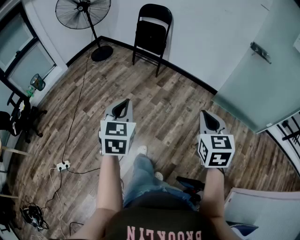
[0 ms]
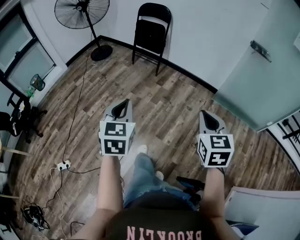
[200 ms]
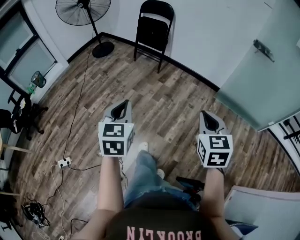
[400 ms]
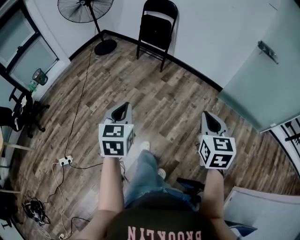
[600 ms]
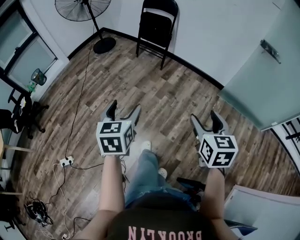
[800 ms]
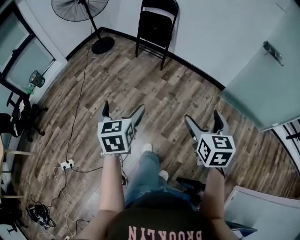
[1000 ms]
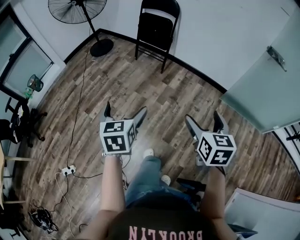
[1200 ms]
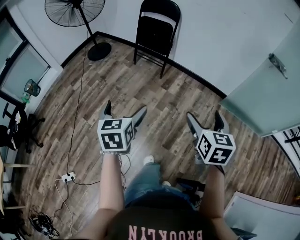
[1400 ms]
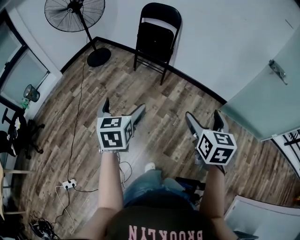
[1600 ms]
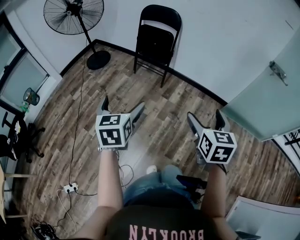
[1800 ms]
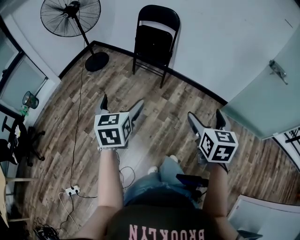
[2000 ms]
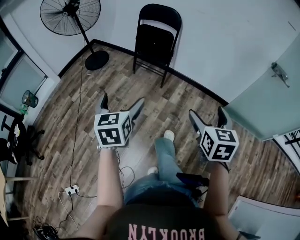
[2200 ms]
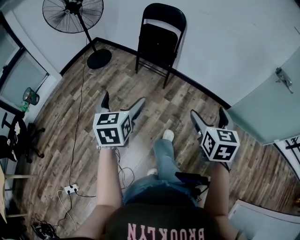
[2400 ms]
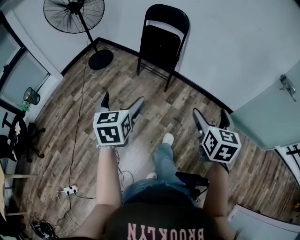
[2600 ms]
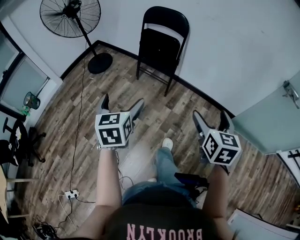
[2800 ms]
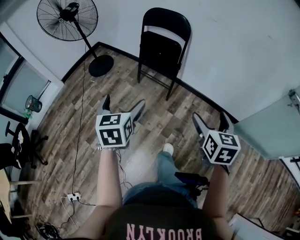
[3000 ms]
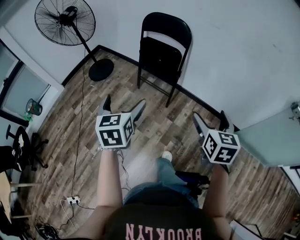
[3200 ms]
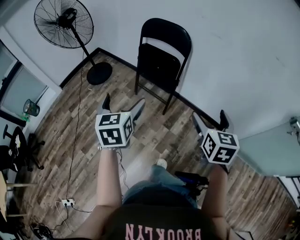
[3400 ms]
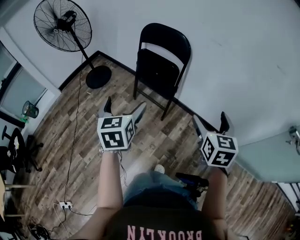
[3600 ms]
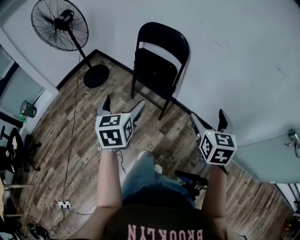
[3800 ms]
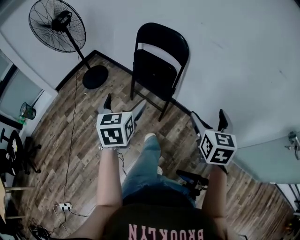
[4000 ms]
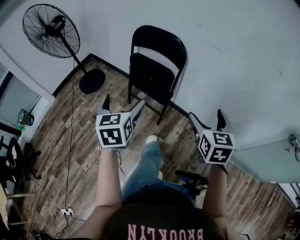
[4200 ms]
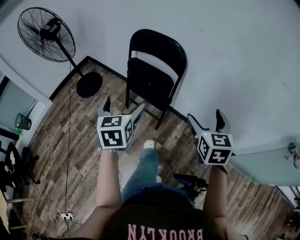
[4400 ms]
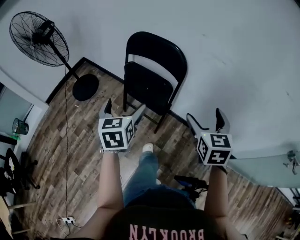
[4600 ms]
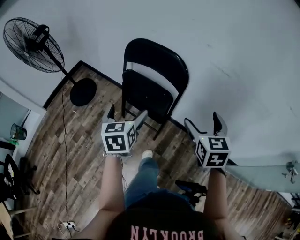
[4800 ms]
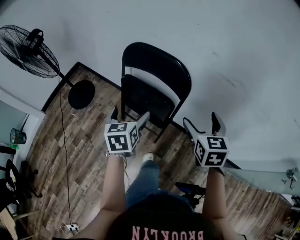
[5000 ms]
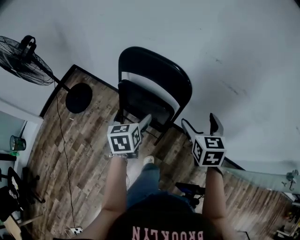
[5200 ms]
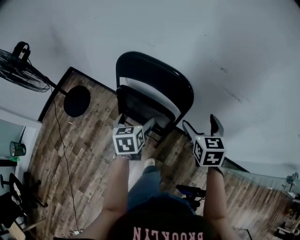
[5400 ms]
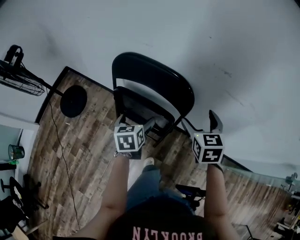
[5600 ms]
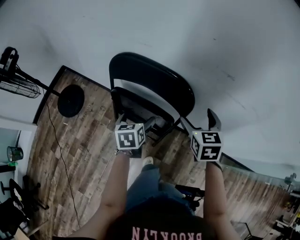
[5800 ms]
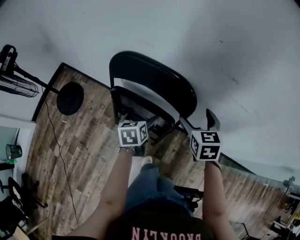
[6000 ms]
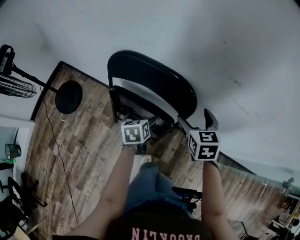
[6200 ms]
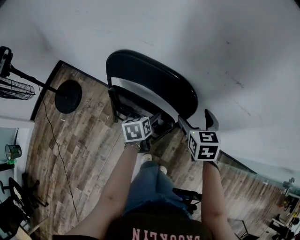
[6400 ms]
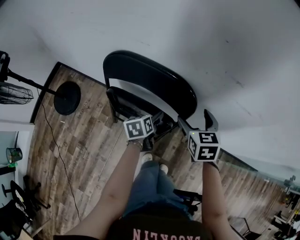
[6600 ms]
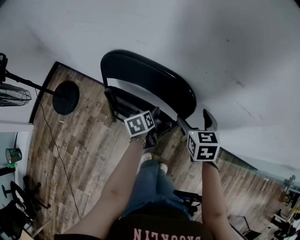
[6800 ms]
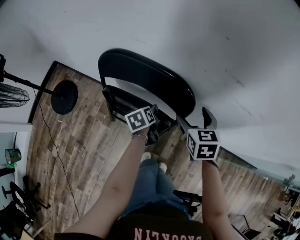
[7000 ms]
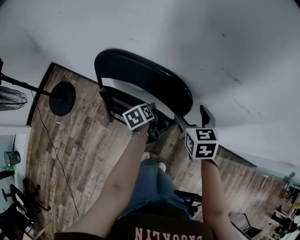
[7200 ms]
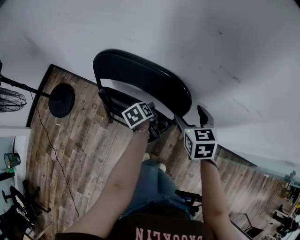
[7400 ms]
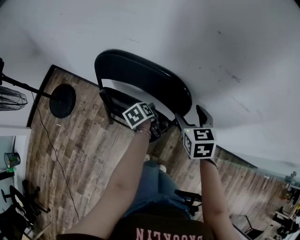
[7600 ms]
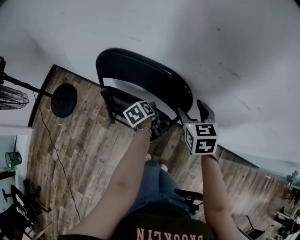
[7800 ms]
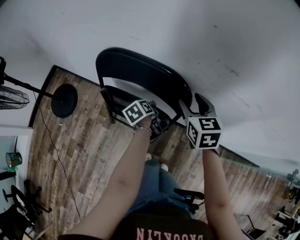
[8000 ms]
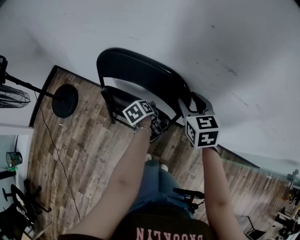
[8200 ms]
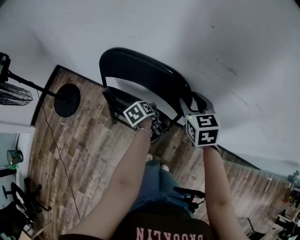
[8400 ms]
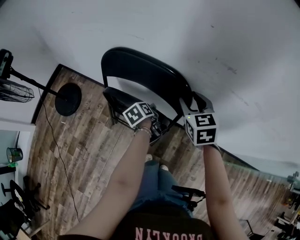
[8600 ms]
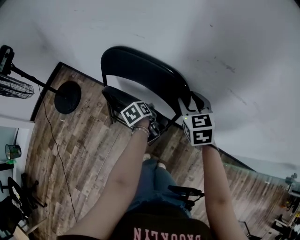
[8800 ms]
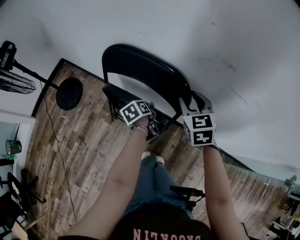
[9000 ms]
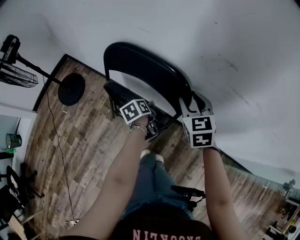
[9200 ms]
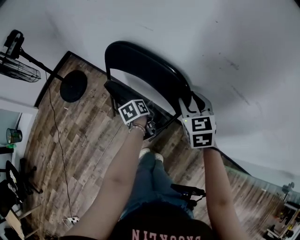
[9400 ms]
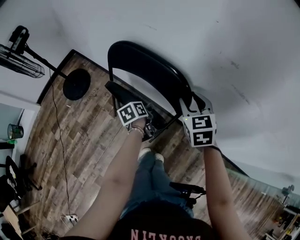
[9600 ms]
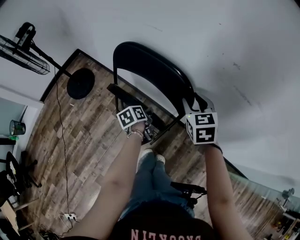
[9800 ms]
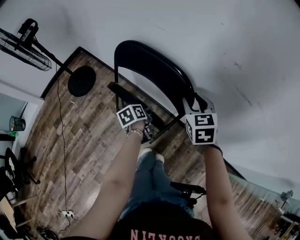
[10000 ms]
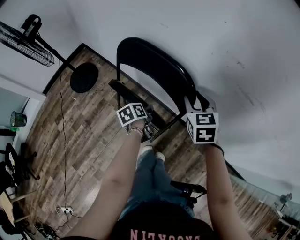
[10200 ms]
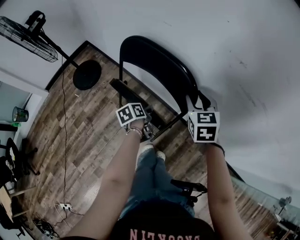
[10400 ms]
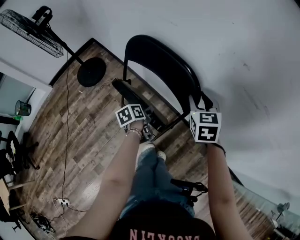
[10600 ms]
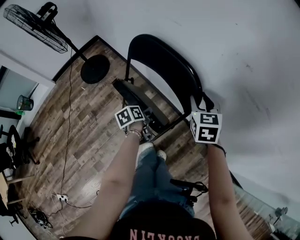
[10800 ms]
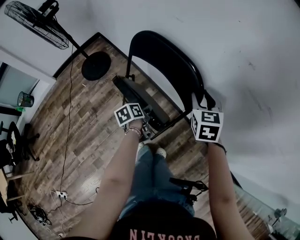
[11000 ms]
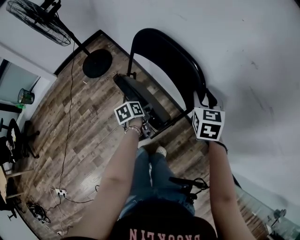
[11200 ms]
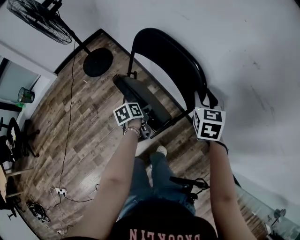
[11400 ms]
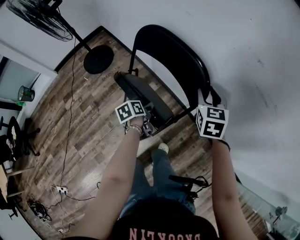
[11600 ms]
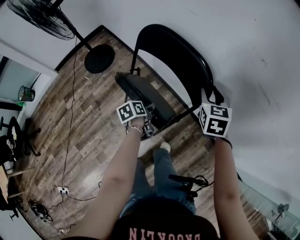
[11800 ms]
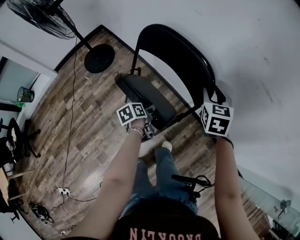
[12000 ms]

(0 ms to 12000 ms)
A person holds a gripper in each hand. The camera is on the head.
0 ms - 1600 ms: The two grippers go approximately 30 cm forward and to the left. The left gripper opens. Meanwhile the right gripper opens up.
1600 ms - 3000 ms: The two grippers go some 25 cm forward.
3000 ms - 4400 ms: The two grippers go about 30 cm forward.
4400 ms - 6000 ms: The right gripper heads forward, covering approximately 35 cm. The left gripper is displaced forward and downward by about 40 cm, and rotates approximately 30 degrees.
6000 ms - 7600 ms: The left gripper shifts roughly 10 cm downward and forward, rotates about 30 degrees, and closes up.
7600 ms - 9000 ms: The right gripper closes its fingers.
9000 ms - 10400 ms: The left gripper shifts some 10 cm backward.
10400 ms - 12000 ms: The left gripper is displaced backward and to the left by roughly 10 cm.

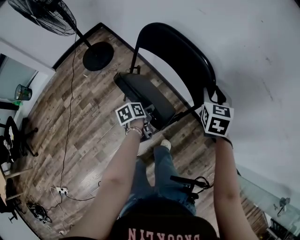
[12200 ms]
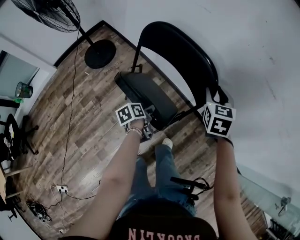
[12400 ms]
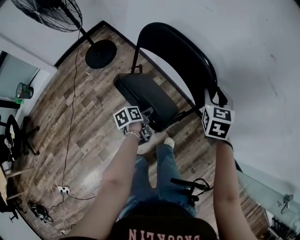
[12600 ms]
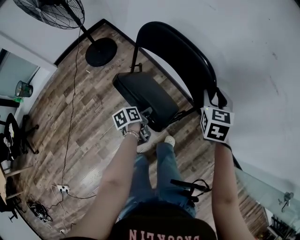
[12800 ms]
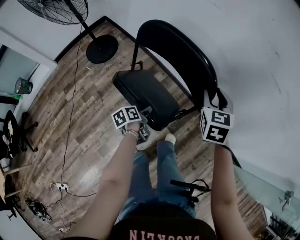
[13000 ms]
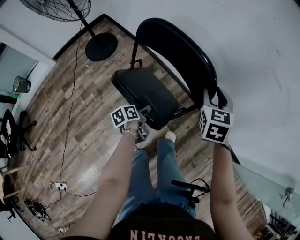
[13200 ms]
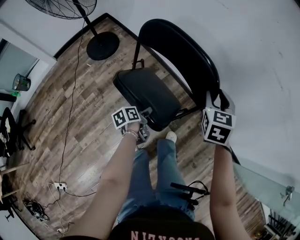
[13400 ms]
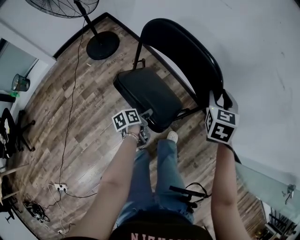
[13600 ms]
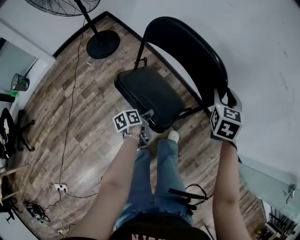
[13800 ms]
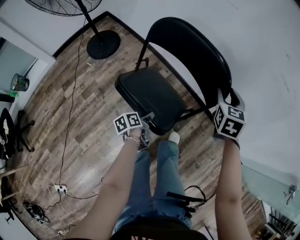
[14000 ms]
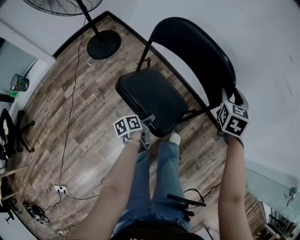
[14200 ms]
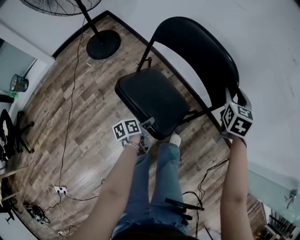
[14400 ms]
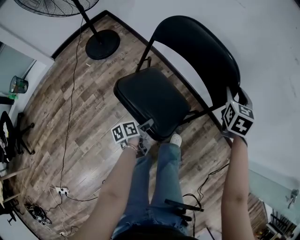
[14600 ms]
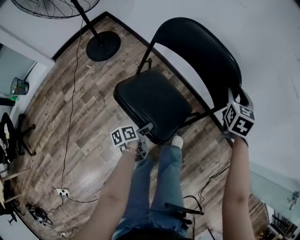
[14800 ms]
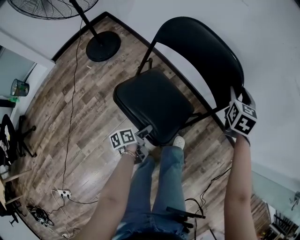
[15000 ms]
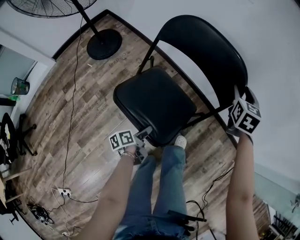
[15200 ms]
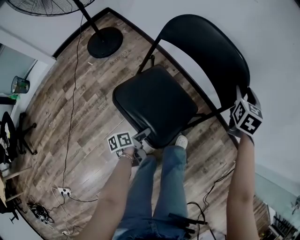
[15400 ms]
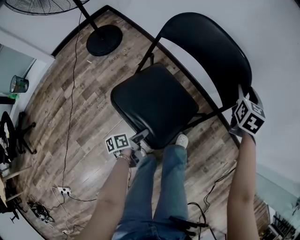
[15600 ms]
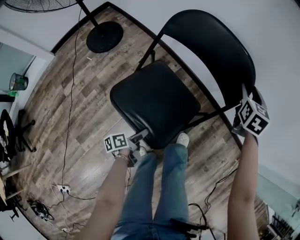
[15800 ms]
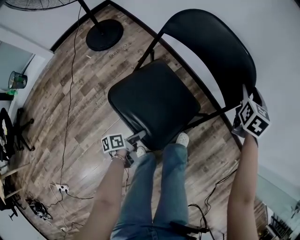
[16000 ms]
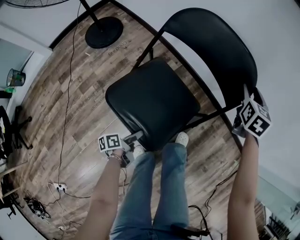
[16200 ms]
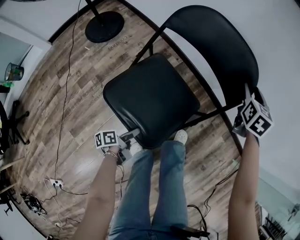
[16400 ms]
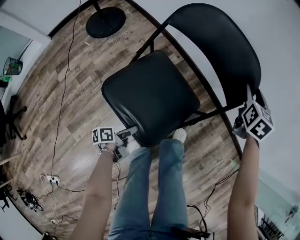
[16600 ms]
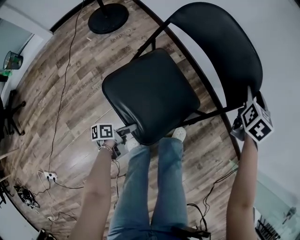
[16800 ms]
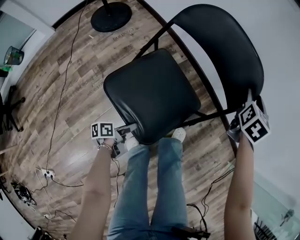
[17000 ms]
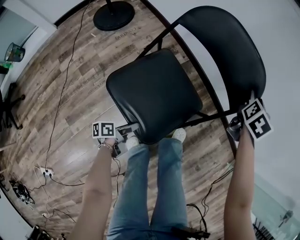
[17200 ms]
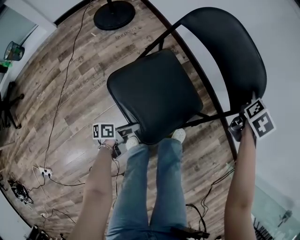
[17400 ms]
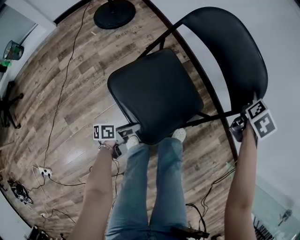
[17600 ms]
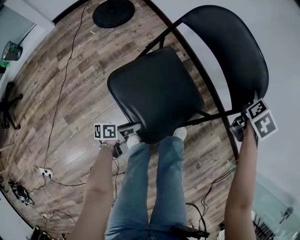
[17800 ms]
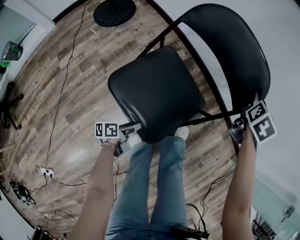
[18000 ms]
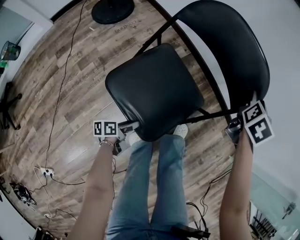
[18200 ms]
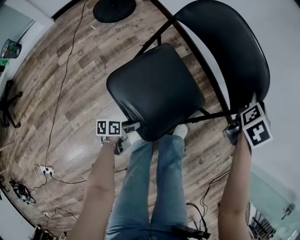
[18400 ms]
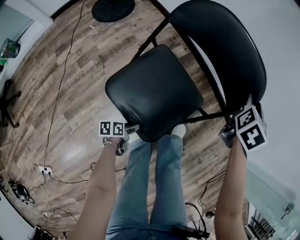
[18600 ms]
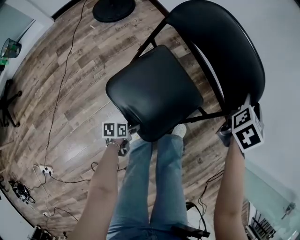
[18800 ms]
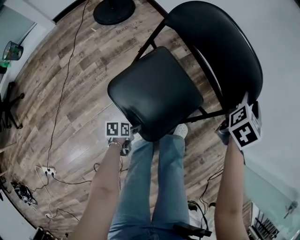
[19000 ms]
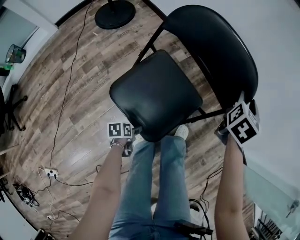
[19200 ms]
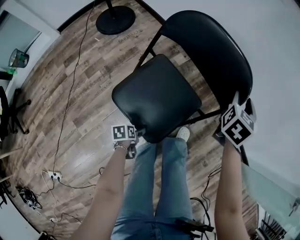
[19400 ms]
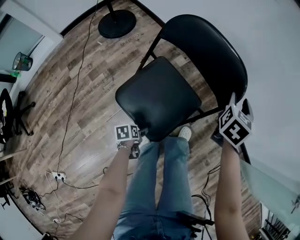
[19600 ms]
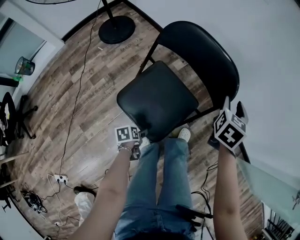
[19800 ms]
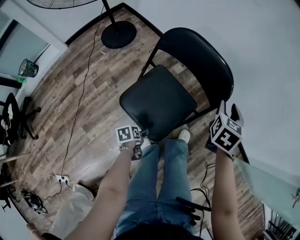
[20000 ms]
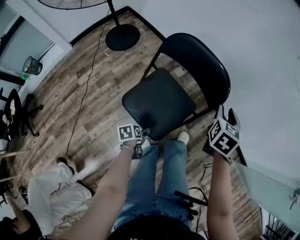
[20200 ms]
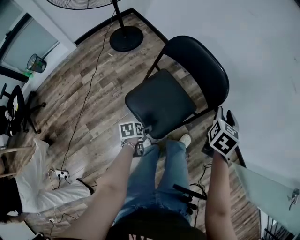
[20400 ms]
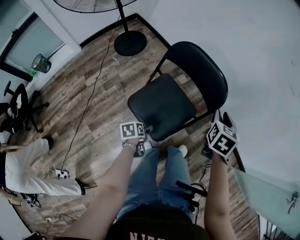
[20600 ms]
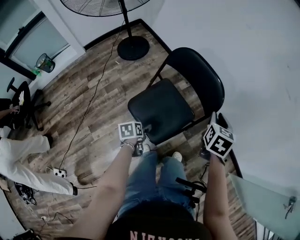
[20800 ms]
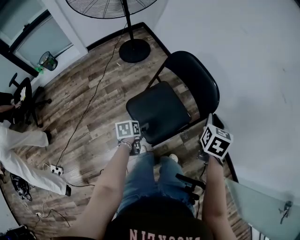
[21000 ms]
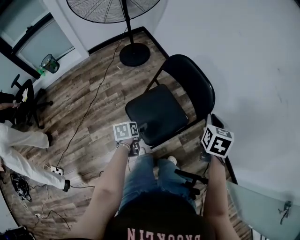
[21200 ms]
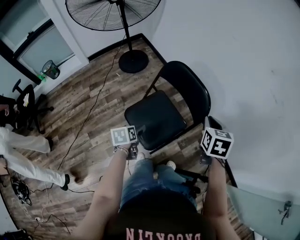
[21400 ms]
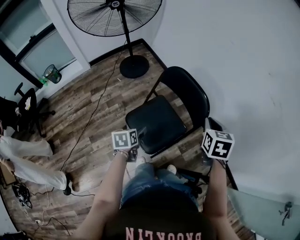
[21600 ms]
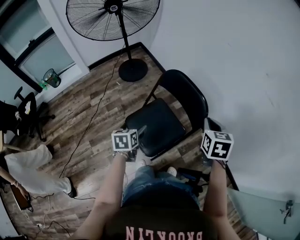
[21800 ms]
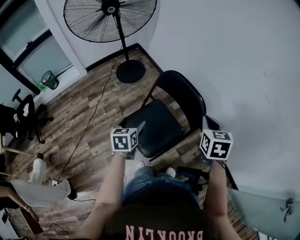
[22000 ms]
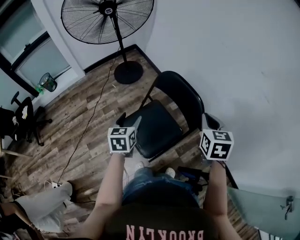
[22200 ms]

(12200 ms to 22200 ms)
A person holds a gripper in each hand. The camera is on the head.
12200 ms - 13600 ms: Both grippers travel together backward and to the left, roughly 15 cm.
13600 ms - 15000 ms: The right gripper goes about 10 cm forward and downward, while the left gripper goes some 5 cm downward.
15000 ms - 16400 ms: The right gripper travels downward by about 10 cm; the left gripper moves downward and backward, approximately 15 cm.
16400 ms - 18000 ms: The grippers both shift backward by some 5 cm.
18000 ms - 19400 ms: The right gripper moves backward, about 5 cm, while the left gripper ends up roughly 5 cm from where it was, and tips its fingers downward by some 30 degrees.
19400 ms - 20800 ms: The left gripper is displaced upward by approximately 25 cm, while the right gripper changes place by some 15 cm, and turns by roughly 20 degrees.
20800 ms - 22200 ms: The left gripper heads upward, covering approximately 25 cm, and changes its angle by roughly 40 degrees. Meanwhile the right gripper shifts about 15 cm upward, and rotates roughly 20 degrees.

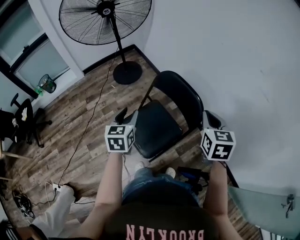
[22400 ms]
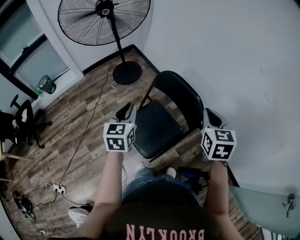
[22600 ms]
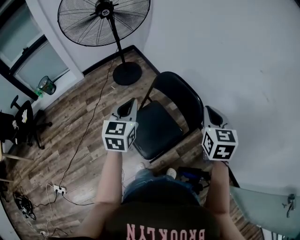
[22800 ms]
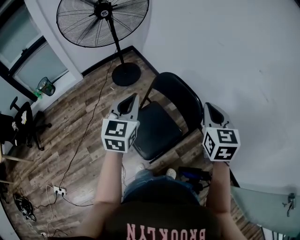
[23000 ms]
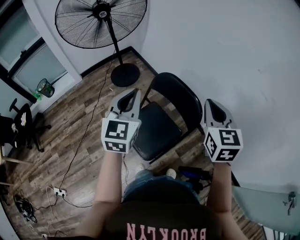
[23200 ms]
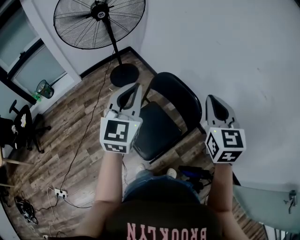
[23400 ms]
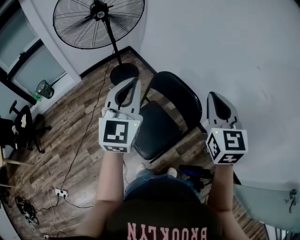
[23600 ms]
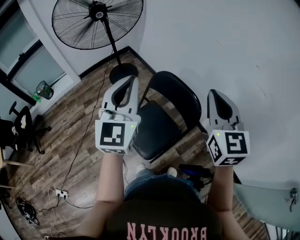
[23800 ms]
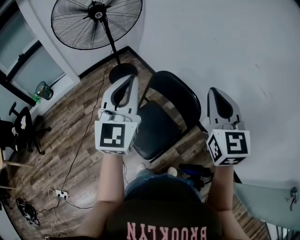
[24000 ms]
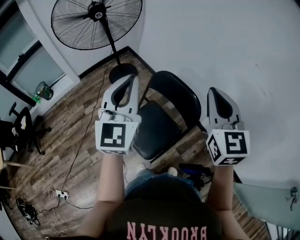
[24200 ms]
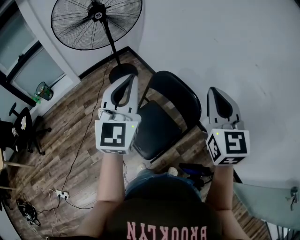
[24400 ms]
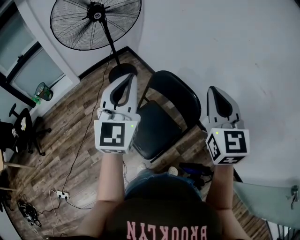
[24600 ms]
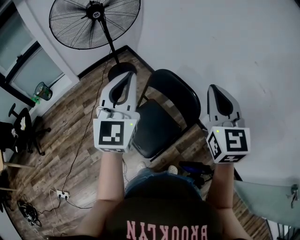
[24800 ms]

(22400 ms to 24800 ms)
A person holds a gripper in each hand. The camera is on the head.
22400 ms - 23600 ms: The left gripper travels upward by some 20 cm, and turns by roughly 40 degrees; the right gripper is displaced upward by approximately 10 cm, and swivels roughly 20 degrees.
23600 ms - 24800 ms: The grippers make only small movements.
